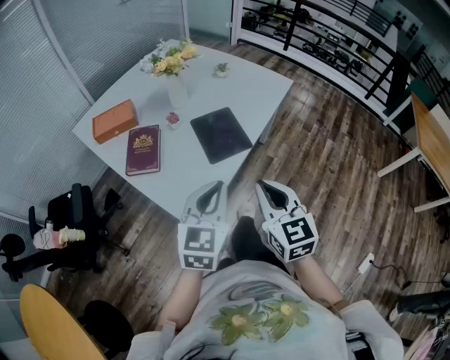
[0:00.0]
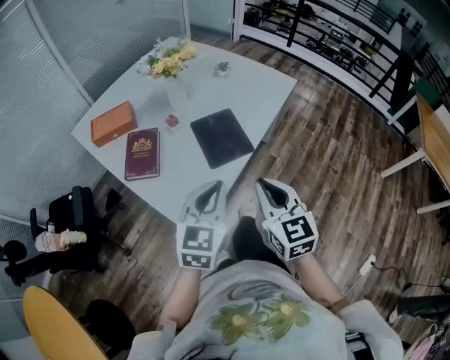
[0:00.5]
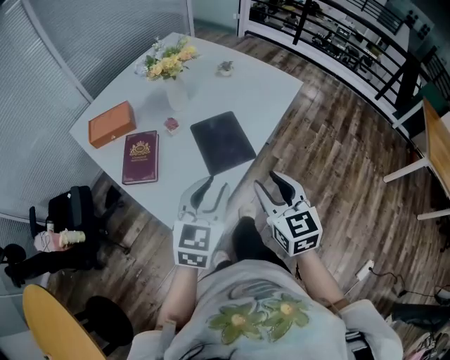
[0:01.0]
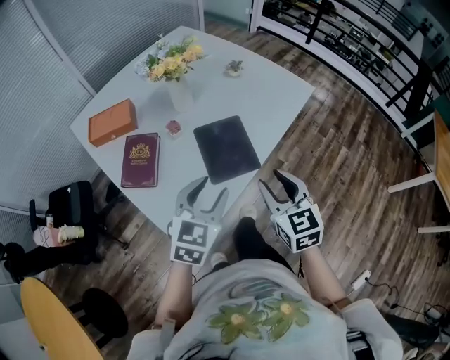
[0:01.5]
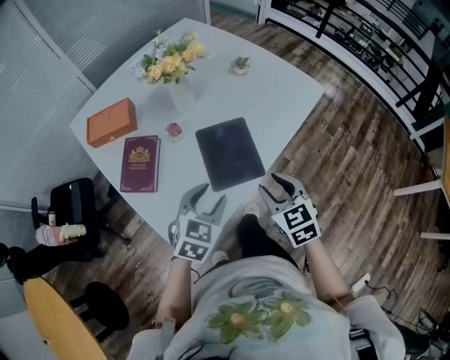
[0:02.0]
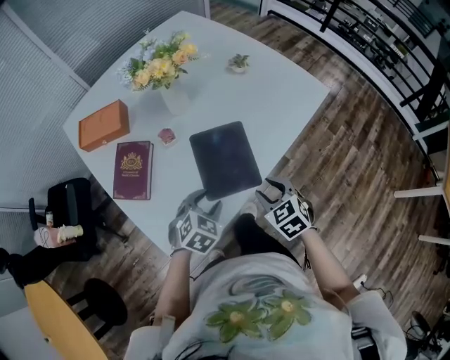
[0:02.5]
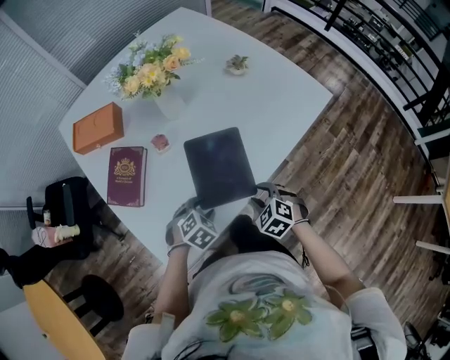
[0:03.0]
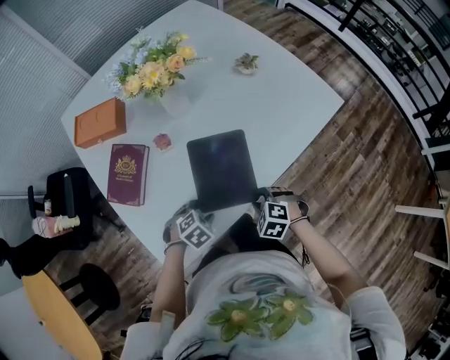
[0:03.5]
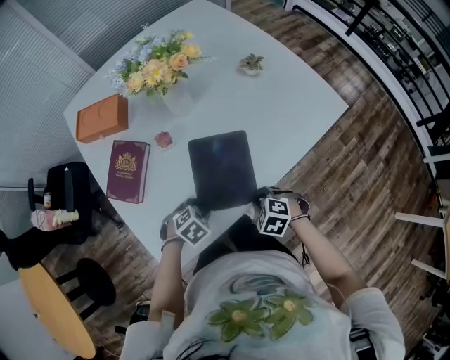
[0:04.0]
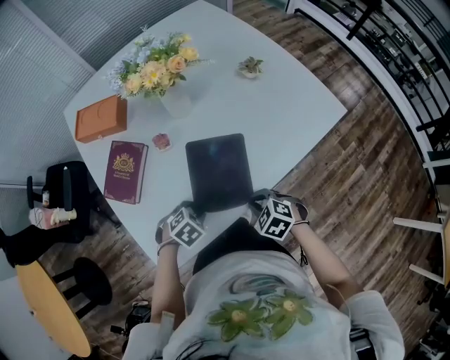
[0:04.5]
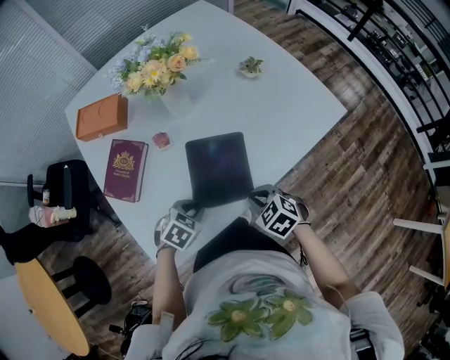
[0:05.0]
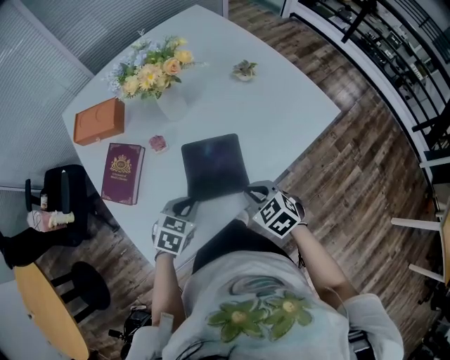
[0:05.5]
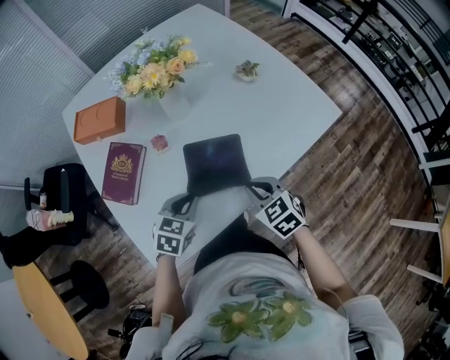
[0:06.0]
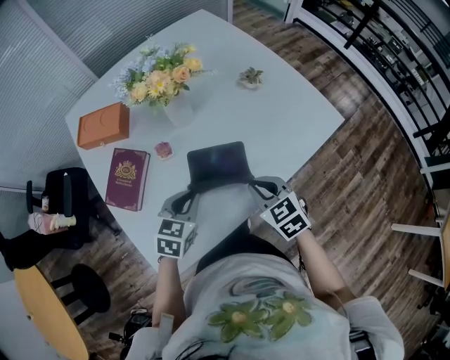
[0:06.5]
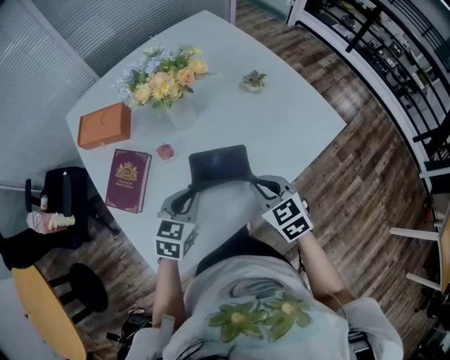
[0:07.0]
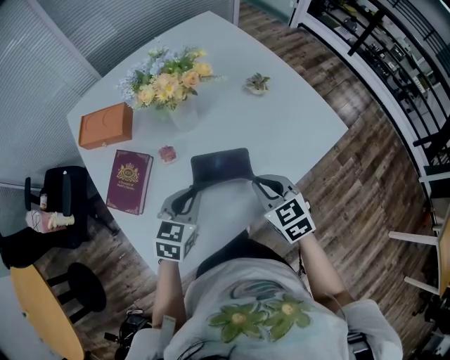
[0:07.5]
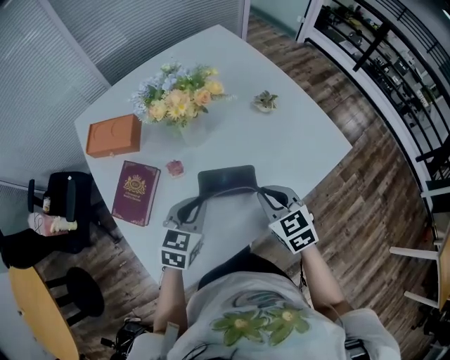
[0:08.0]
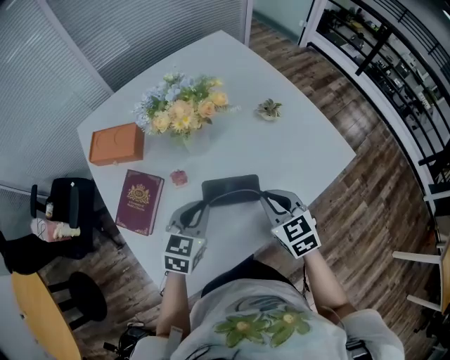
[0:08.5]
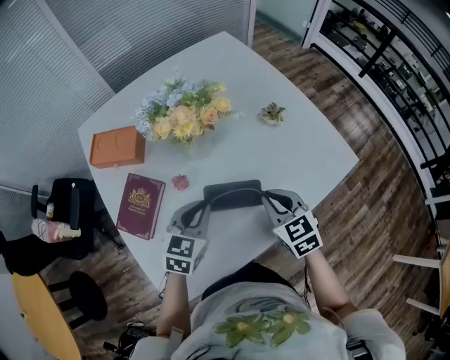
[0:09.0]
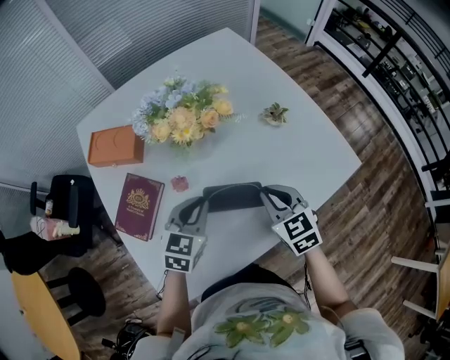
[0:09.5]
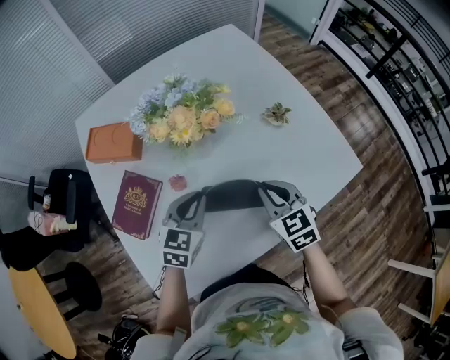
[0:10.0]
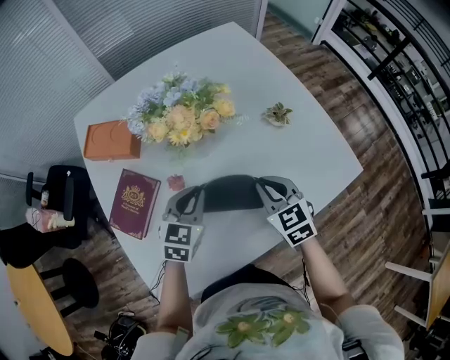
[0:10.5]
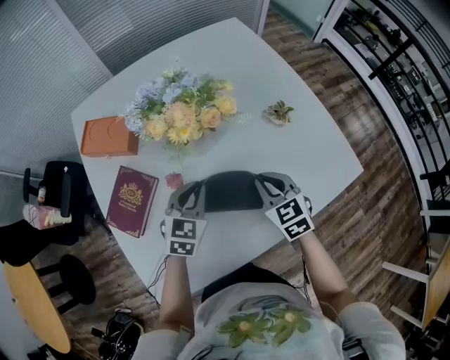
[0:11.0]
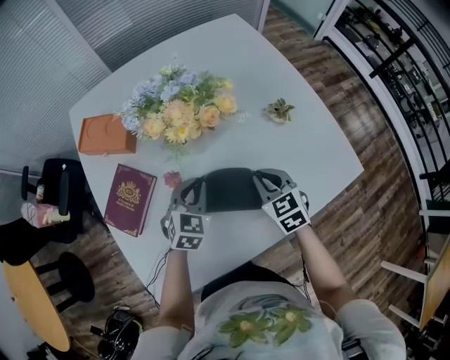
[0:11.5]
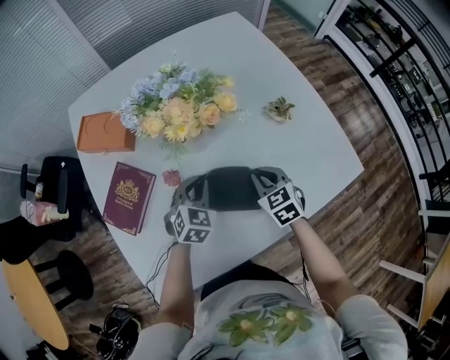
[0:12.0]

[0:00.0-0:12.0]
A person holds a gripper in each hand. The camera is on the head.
0:00.0 to 0:02.0: Both grippers move forward and downward, roughly 20 cm. The right gripper turns by some 20 degrees, and opens. The left gripper changes its angle by some 20 degrees, and opens.
0:02.0 to 0:04.0: Both grippers move downward, some 20 cm. The right gripper points its fingers about 30 degrees further downward, and closes. The left gripper tips its fingers downward by some 30 degrees.
0:04.0 to 0:06.0: The two grippers go some 15 cm upward and forward. The left gripper changes its angle by approximately 40 degrees. The right gripper turns by about 30 degrees.
0:06.0 to 0:08.0: Both grippers move forward and upward, approximately 10 cm.
0:08.0 to 0:10.0: The two grippers go roughly 10 cm forward.
0:10.0 to 0:12.0: Both grippers move downward, some 10 cm.

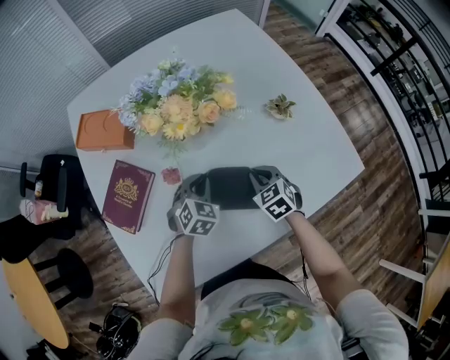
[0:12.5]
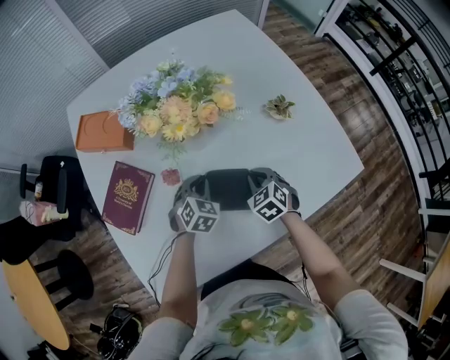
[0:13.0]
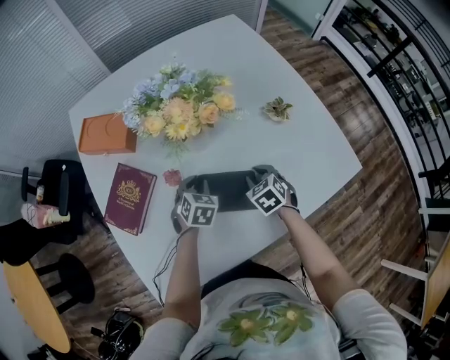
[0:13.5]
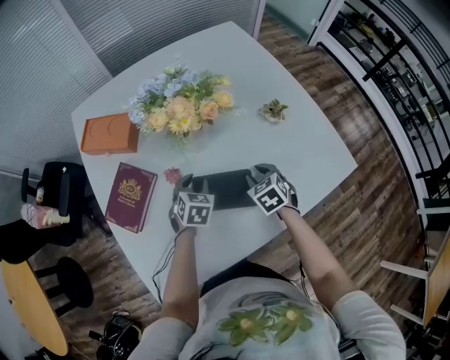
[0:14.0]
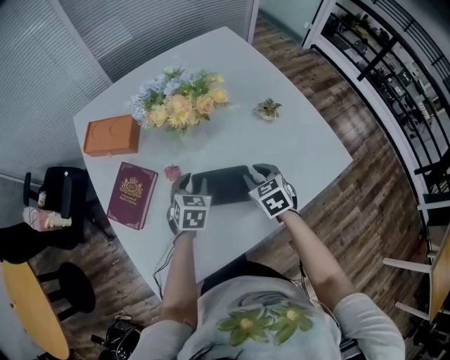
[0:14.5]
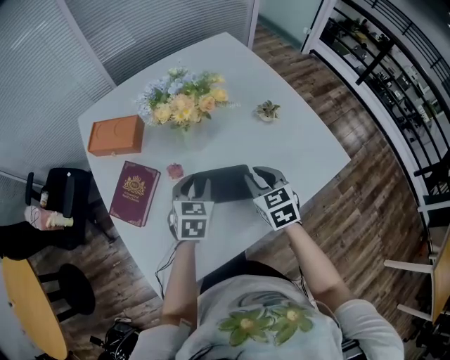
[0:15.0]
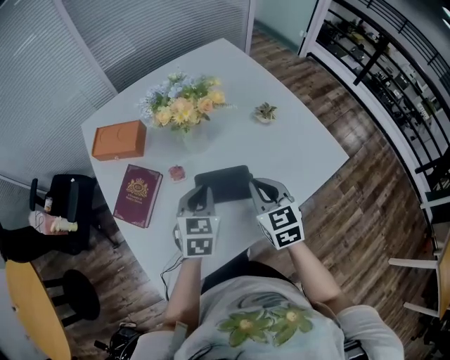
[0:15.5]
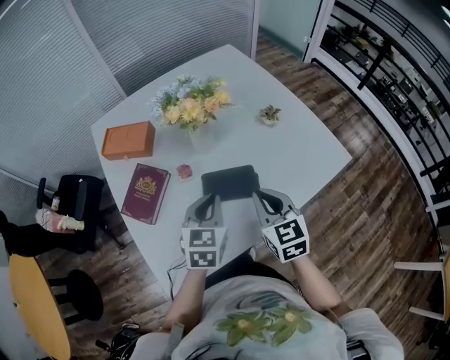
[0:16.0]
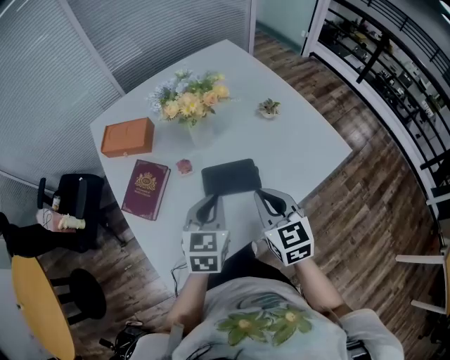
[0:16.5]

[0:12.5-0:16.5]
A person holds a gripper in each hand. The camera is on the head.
0:12.5 to 0:14.5: Both grippers move upward, approximately 5 cm. The left gripper opens up. Meanwhile the right gripper opens up.
0:14.5 to 0:16.5: The grippers both shift upward and backward by about 20 cm. The right gripper rotates some 30 degrees, and closes. The left gripper closes up.

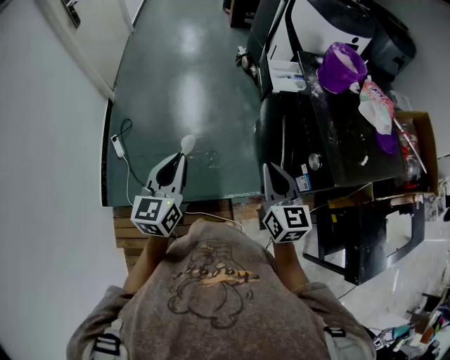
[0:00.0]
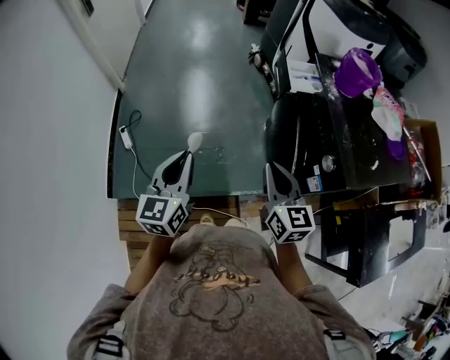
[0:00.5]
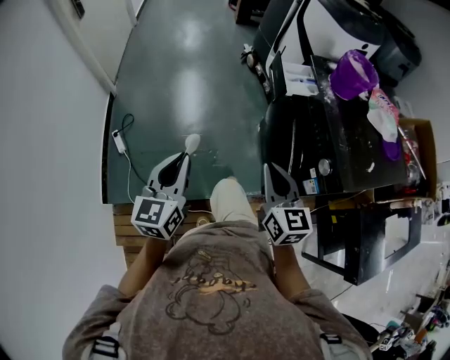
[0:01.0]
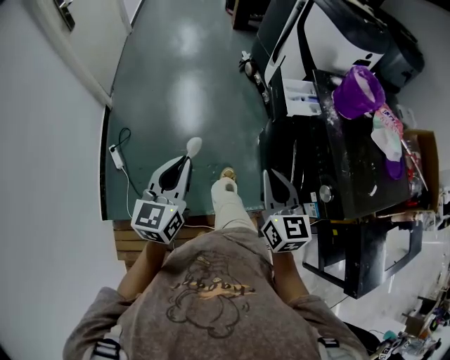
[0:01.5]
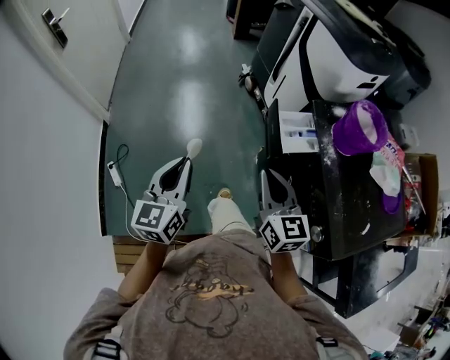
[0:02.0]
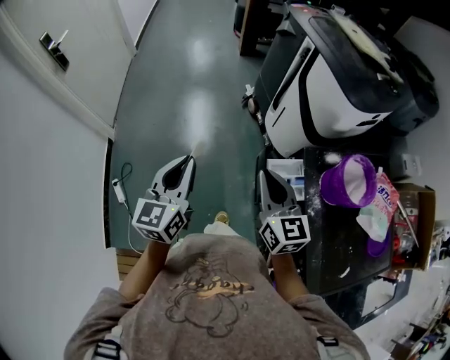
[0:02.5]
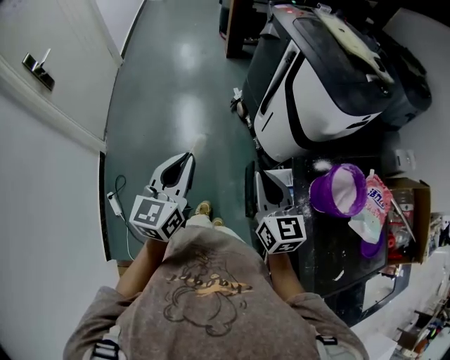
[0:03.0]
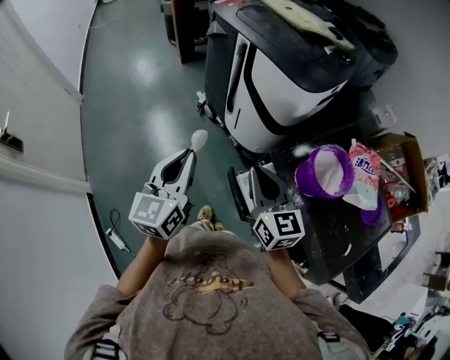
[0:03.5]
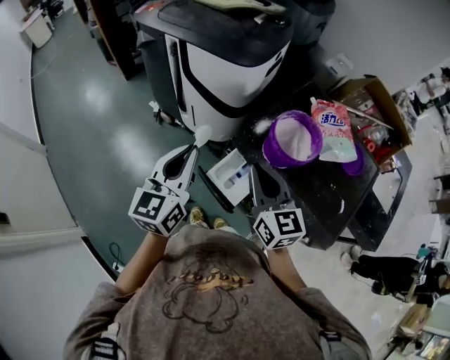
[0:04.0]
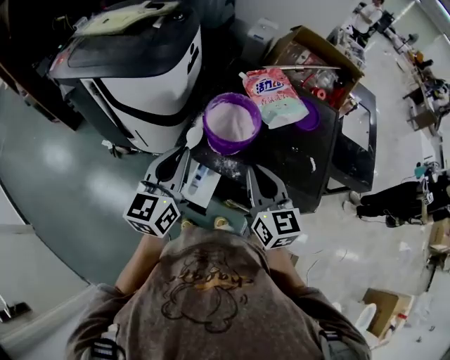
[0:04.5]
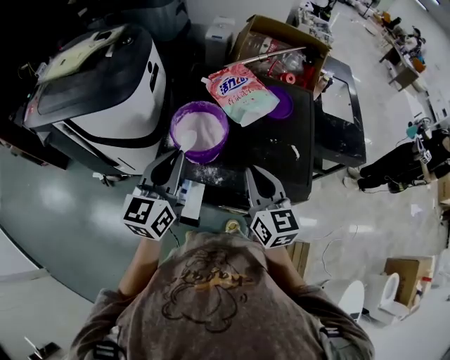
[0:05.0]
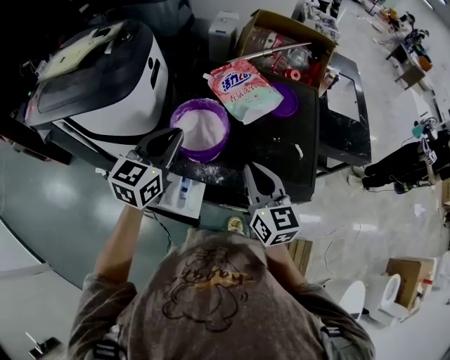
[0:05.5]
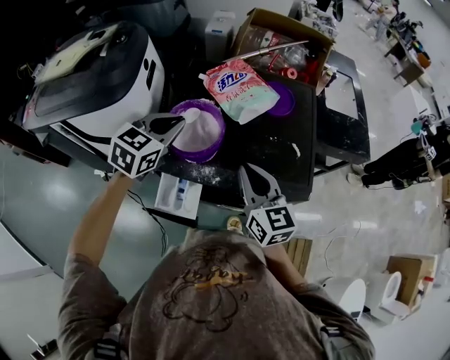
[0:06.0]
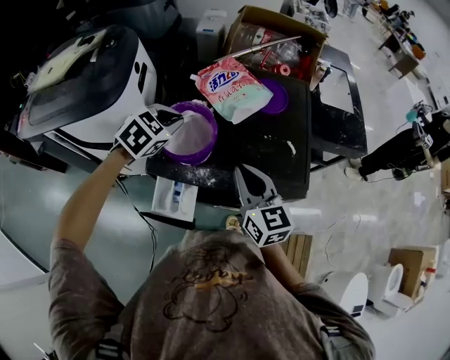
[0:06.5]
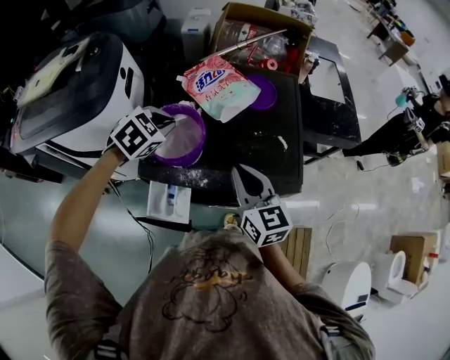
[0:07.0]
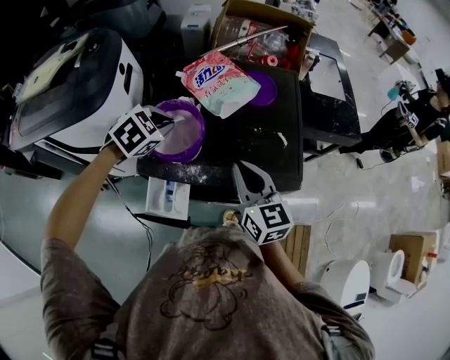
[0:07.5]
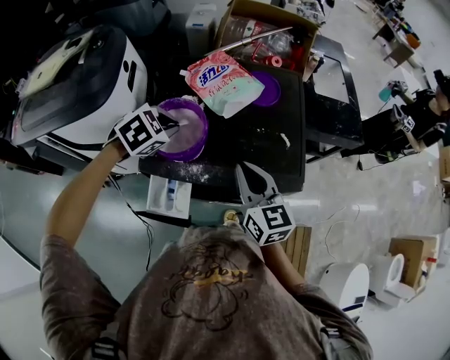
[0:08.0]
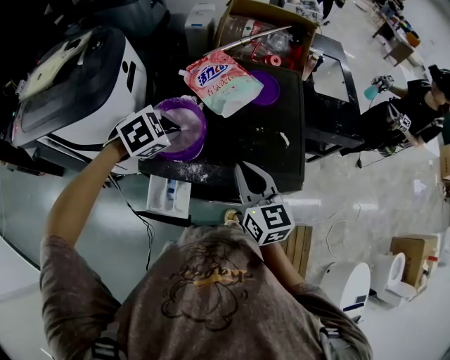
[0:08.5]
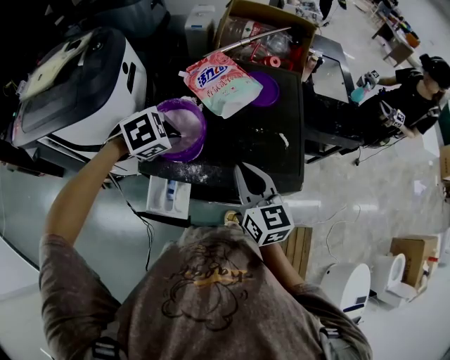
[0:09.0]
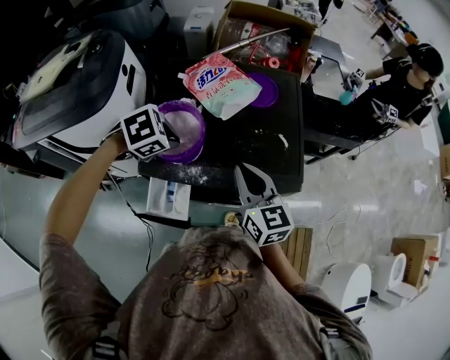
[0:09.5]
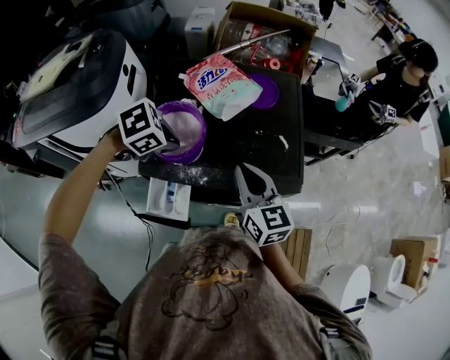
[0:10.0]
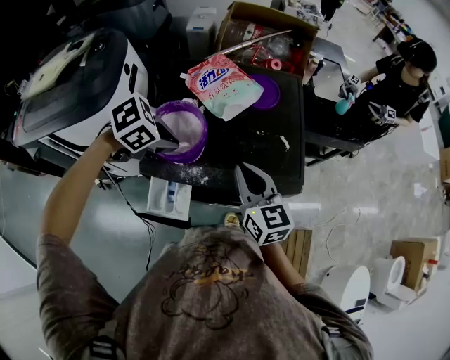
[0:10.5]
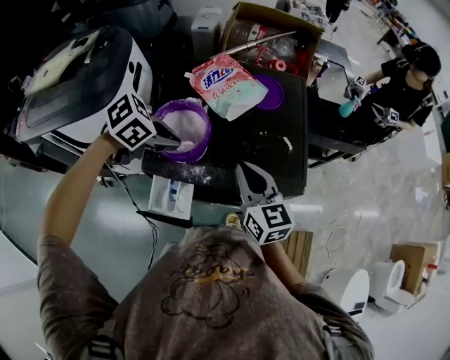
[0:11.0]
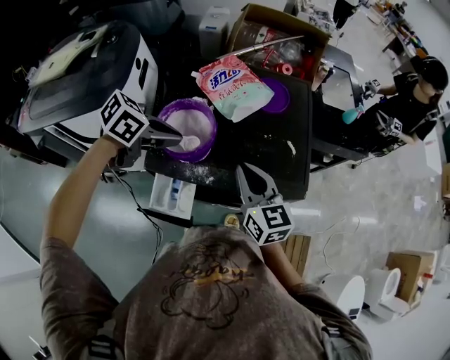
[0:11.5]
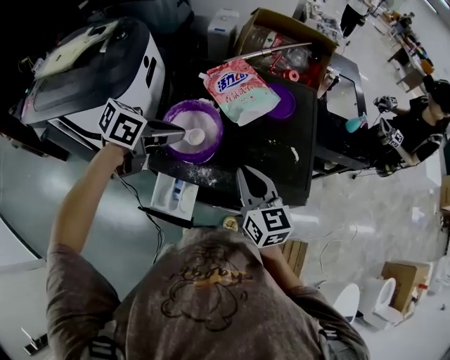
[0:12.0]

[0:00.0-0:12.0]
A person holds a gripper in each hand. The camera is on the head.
0:00.0 to 0:02.0: Both grippers travel together forward, about 25 cm.
0:02.0 to 0:04.0: The left gripper changes place by roughly 40 cm, and swivels some 40 degrees, while the right gripper shifts by about 30 cm, and changes its angle by some 30 degrees.
0:04.0 to 0:06.0: The right gripper moves roughly 20 cm, and swivels some 30 degrees; the left gripper ends up some 30 cm from where it was, and changes its angle by some 60 degrees.
0:06.0 to 0:08.0: The left gripper is displaced downward by roughly 5 cm, and tips its fingers downward by roughly 30 degrees.
0:08.0 to 0:10.0: The left gripper changes place by about 5 cm, and rotates about 20 degrees.
0:10.0 to 0:12.0: The left gripper goes some 5 cm upward, and tilts its fingers some 30 degrees upward.
